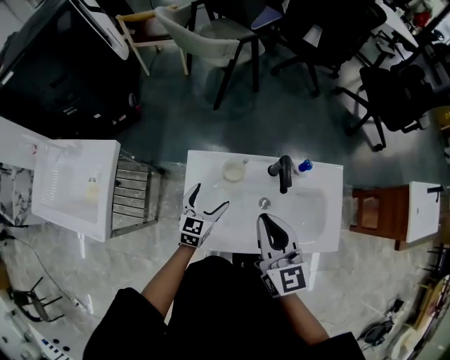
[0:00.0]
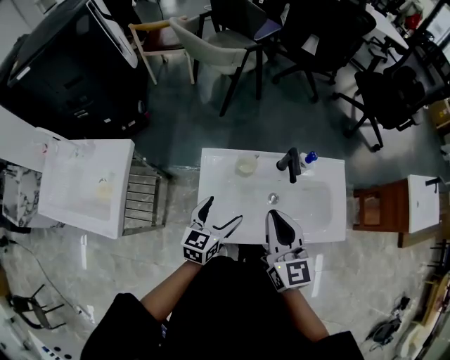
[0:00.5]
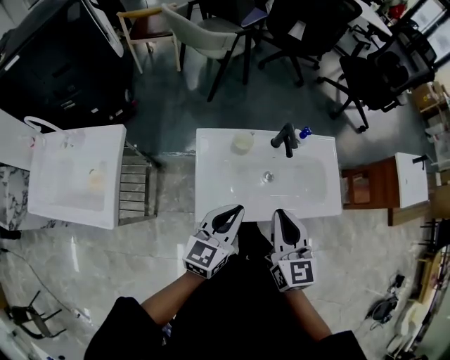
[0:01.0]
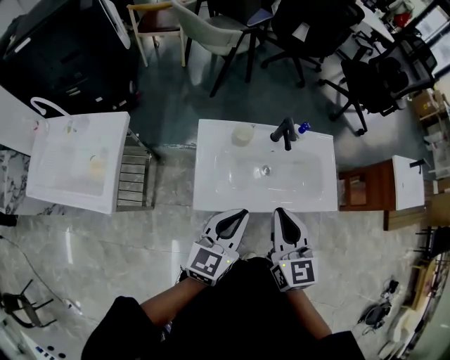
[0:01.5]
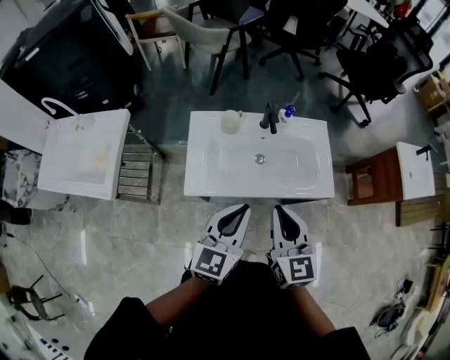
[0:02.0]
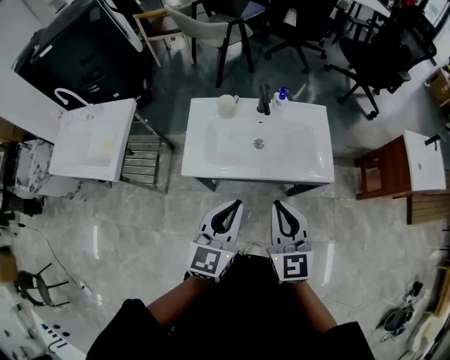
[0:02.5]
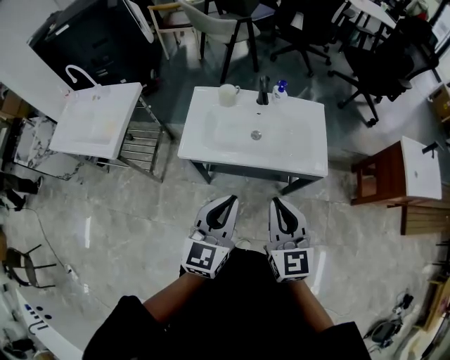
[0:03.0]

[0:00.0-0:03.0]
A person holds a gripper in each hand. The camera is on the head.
0:00.0 to 0:01.5: The right gripper goes about 20 cm backward; the left gripper heads backward and upward, covering some 30 cm, turns by some 20 degrees, and closes up.
0:01.5 to 0:03.0: The right gripper is displaced to the right and backward by roughly 25 cm; the left gripper is displaced backward and to the right by roughly 25 cm.

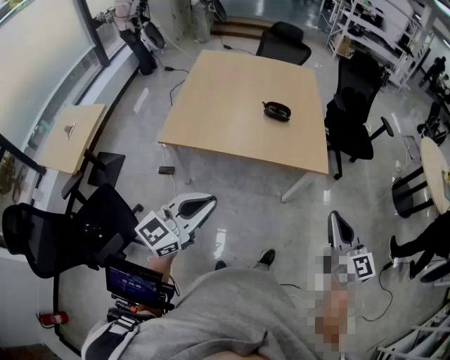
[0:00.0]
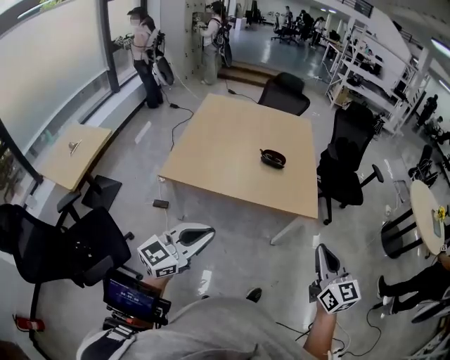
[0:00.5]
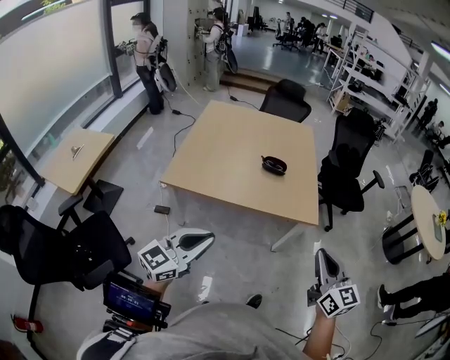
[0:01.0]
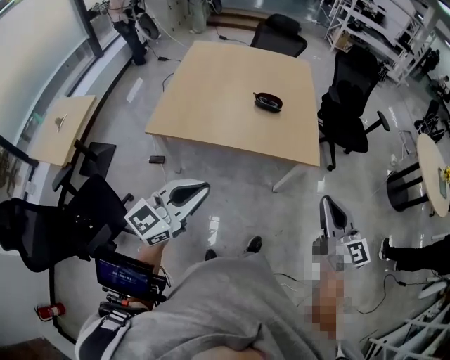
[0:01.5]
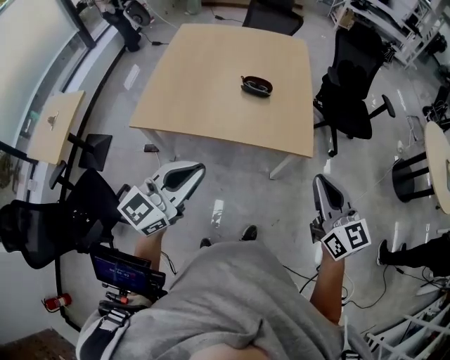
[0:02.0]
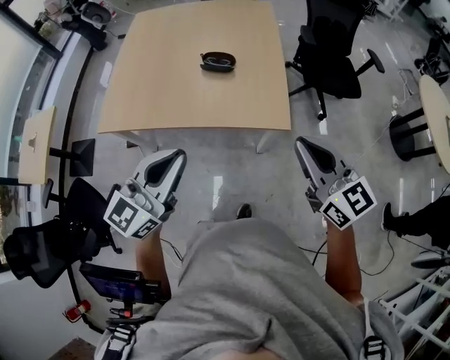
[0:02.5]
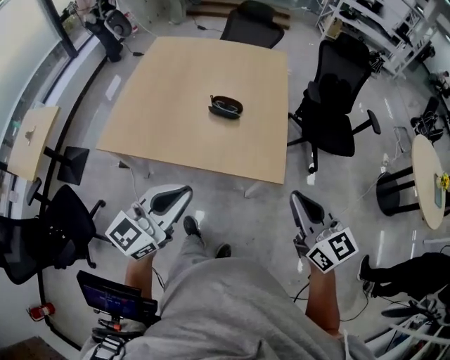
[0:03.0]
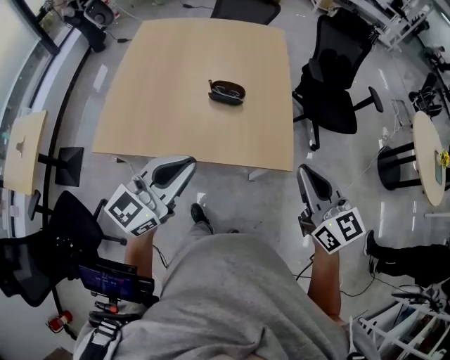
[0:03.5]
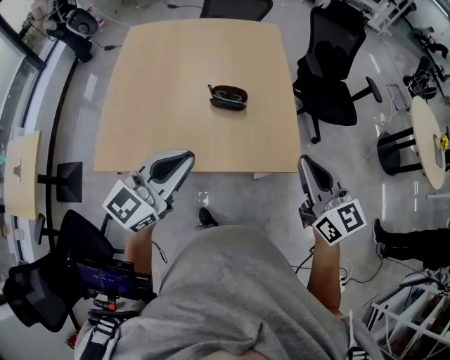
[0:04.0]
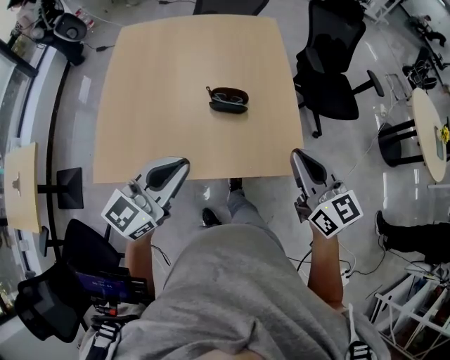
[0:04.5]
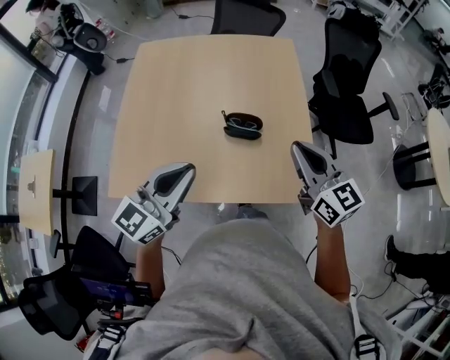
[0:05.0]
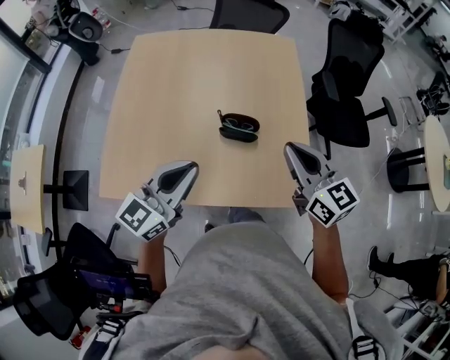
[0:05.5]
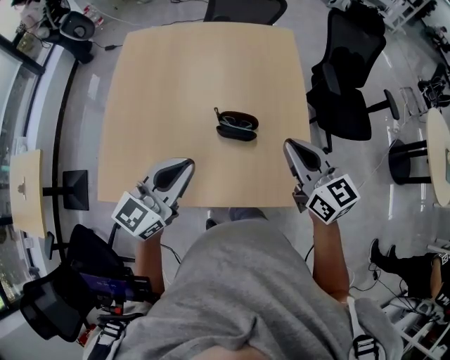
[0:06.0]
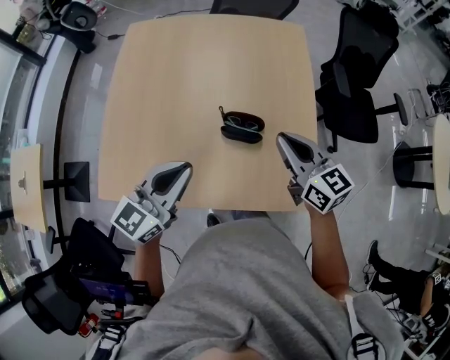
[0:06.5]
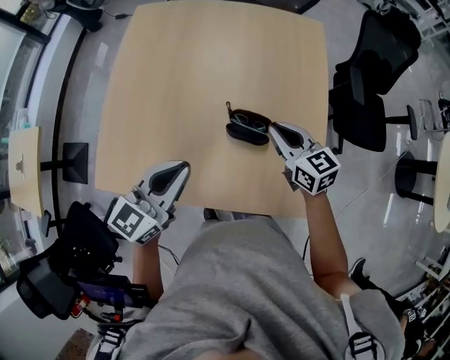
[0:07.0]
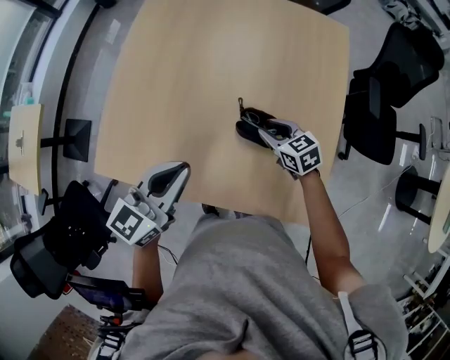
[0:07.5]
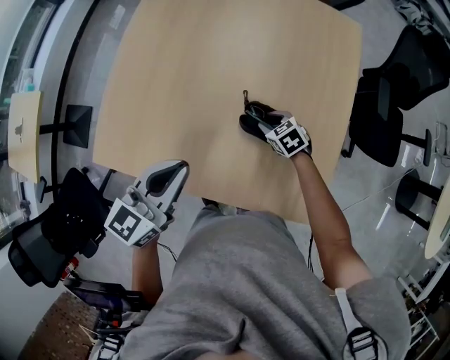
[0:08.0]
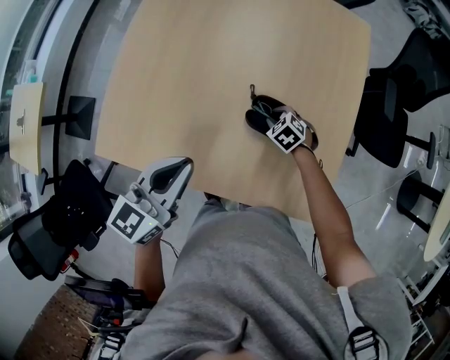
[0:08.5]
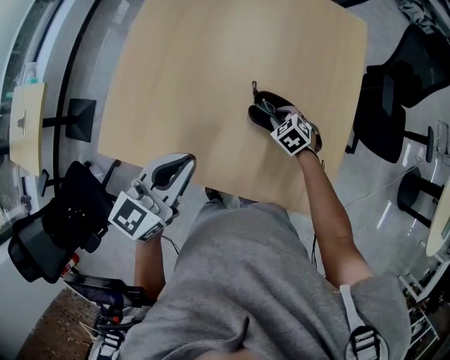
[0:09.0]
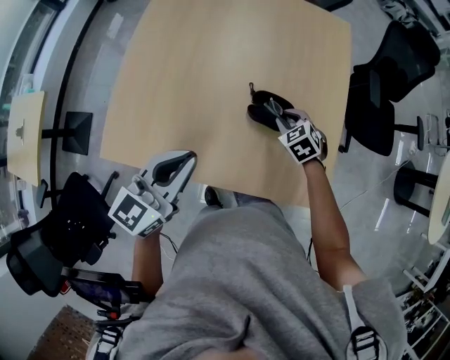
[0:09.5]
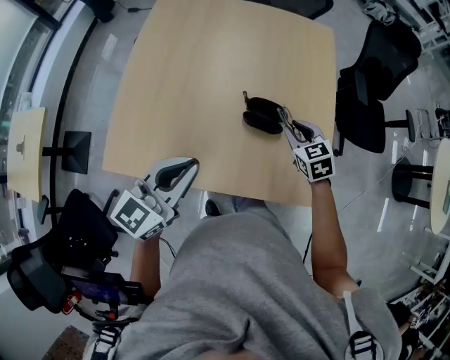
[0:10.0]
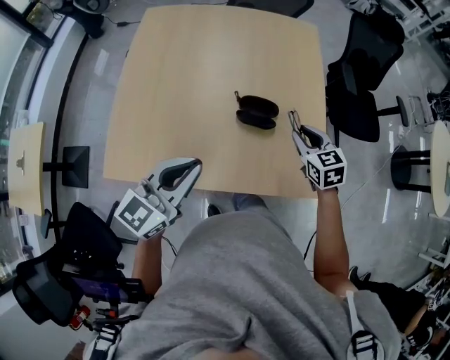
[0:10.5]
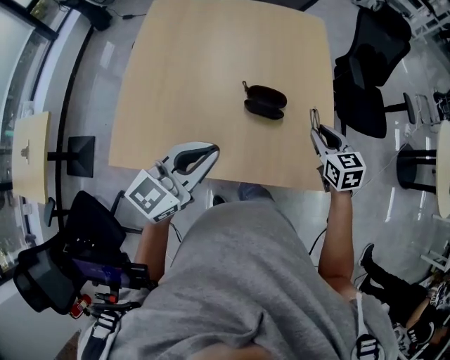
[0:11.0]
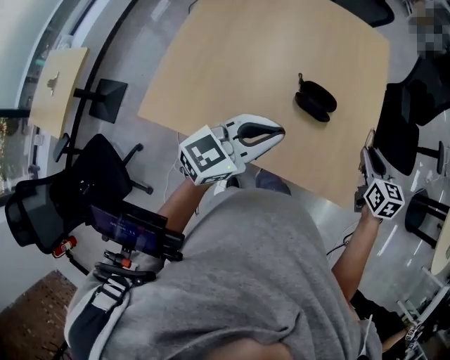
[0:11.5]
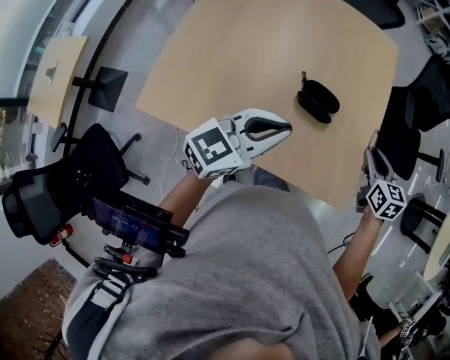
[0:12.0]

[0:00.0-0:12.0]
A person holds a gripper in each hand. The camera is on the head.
0:00.0 to 0:02.0: The left gripper goes roughly 15 cm to the right and forward, while the right gripper goes about 10 cm forward and to the right.
0:02.0 to 0:04.0: The two grippers go about 25 cm forward.
0:04.0 to 0:06.0: Both grippers move forward, some 20 cm.
0:06.0 to 0:08.0: The right gripper goes some 40 cm downward and forward, angles its fingers downward, by roughly 50 degrees, and opens. Meanwhile the left gripper shifts some 10 cm downward and forward, and rotates roughly 20 degrees.
0:08.0 to 0:10.0: The right gripper travels upward and backward by approximately 20 cm, and changes its angle by approximately 30 degrees, while the left gripper moves backward, about 10 cm.
0:10.0 to 0:12.0: The right gripper is displaced to the right by roughly 10 cm; the left gripper heads to the right, covering about 5 cm.

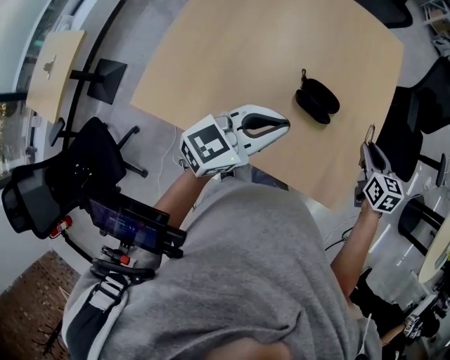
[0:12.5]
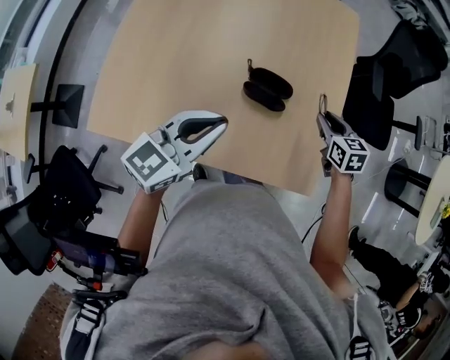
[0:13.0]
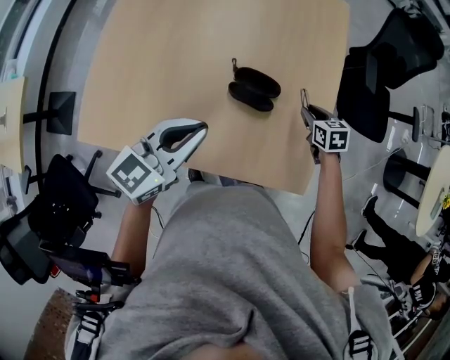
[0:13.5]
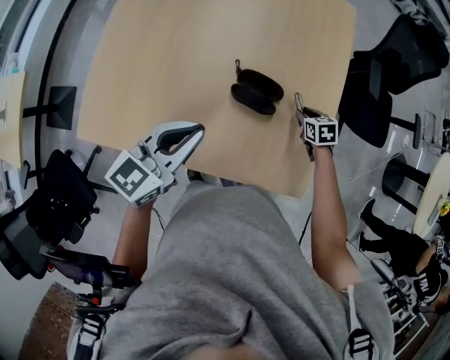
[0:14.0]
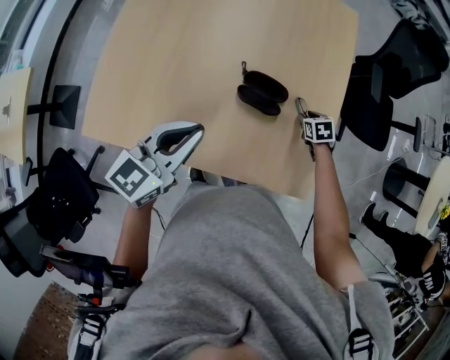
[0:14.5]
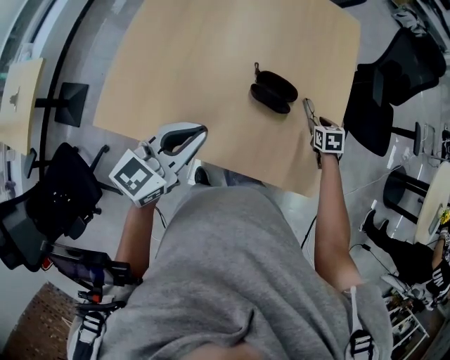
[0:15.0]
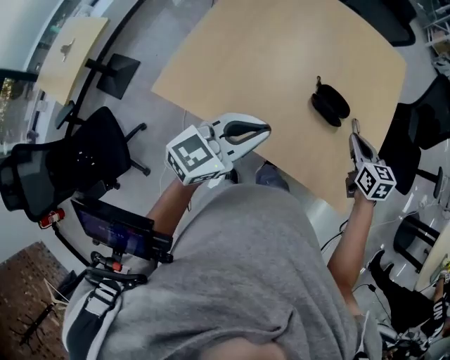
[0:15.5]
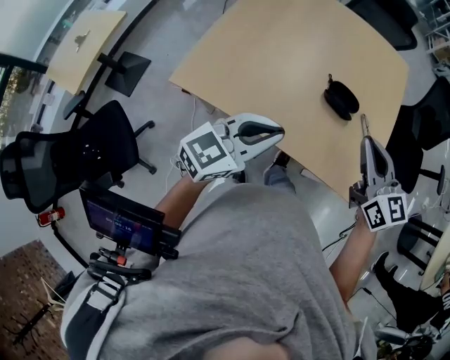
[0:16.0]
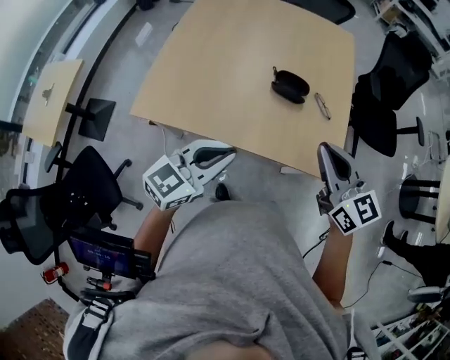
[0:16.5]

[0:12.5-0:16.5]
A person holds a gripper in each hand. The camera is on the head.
0:12.5 to 0:14.5: The right gripper moves downward, approximately 20 cm, and changes its angle by approximately 30 degrees.
0:14.5 to 0:16.5: The left gripper goes approximately 20 cm backward, while the right gripper heads upward, backward and to the left, covering approximately 50 cm, tilts its fingers approximately 60 degrees upward, and closes its fingers.

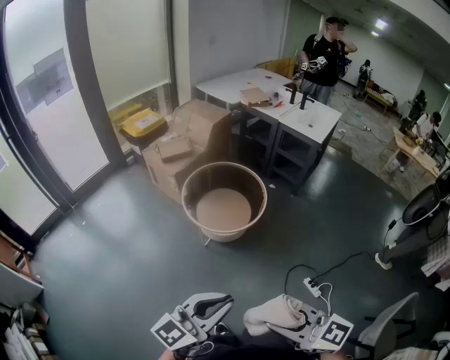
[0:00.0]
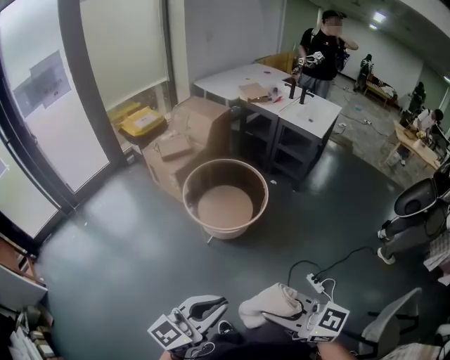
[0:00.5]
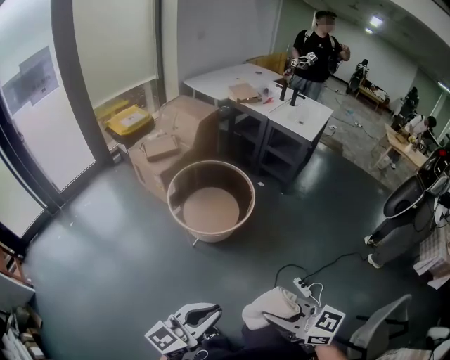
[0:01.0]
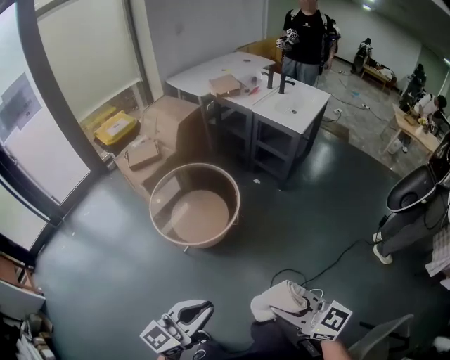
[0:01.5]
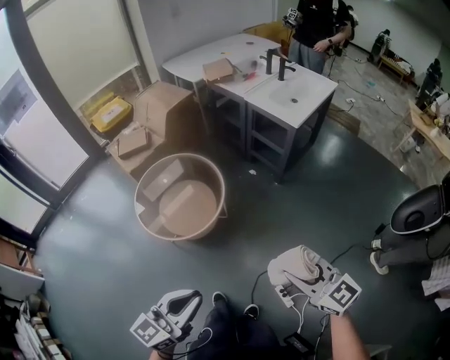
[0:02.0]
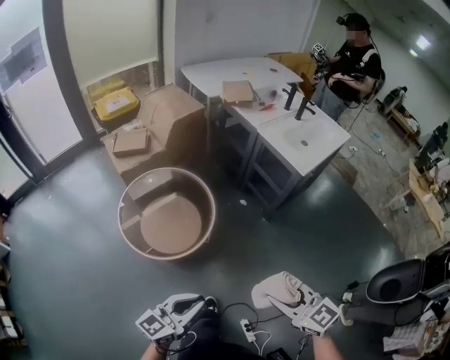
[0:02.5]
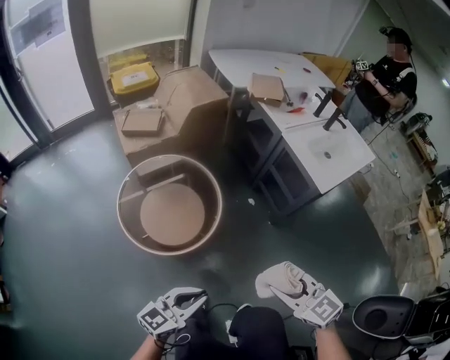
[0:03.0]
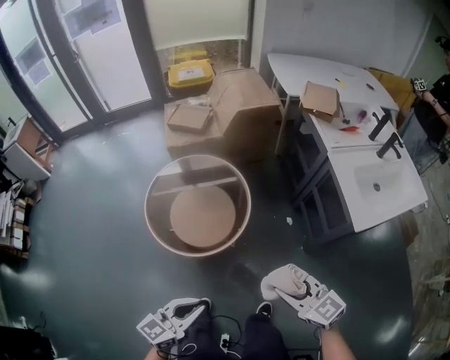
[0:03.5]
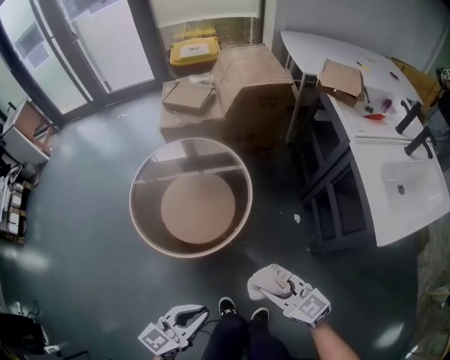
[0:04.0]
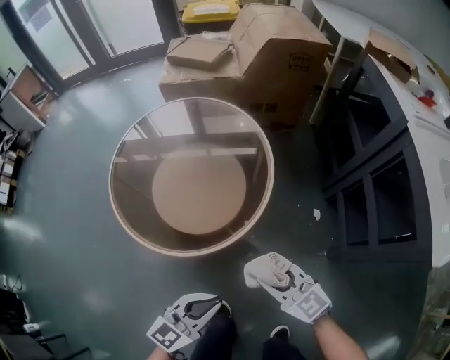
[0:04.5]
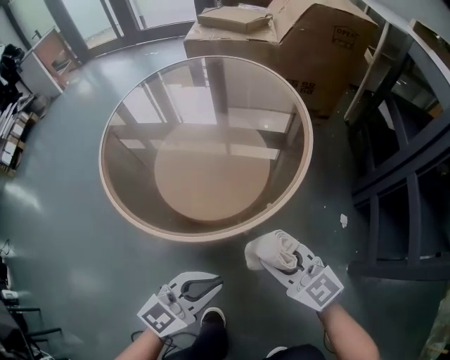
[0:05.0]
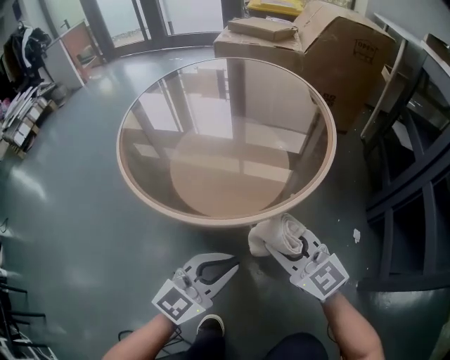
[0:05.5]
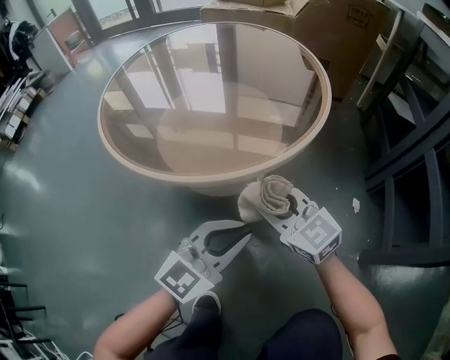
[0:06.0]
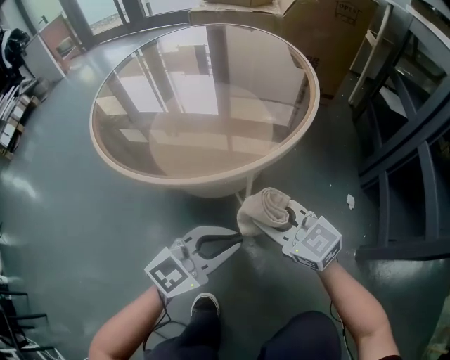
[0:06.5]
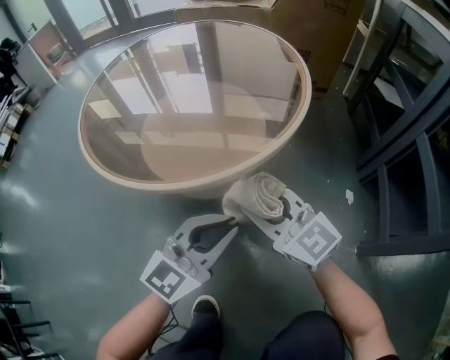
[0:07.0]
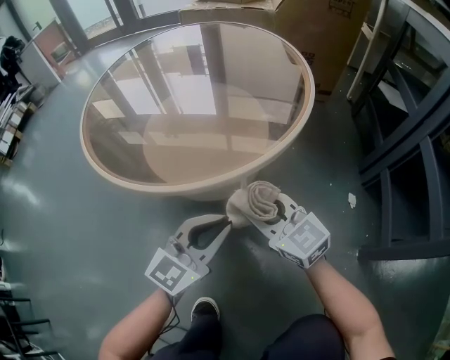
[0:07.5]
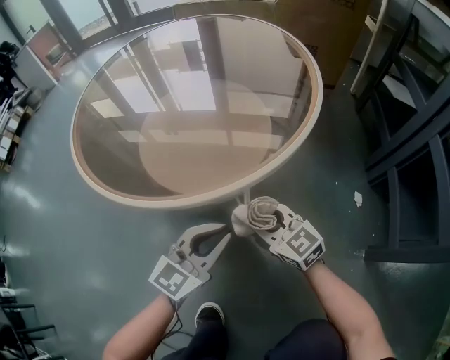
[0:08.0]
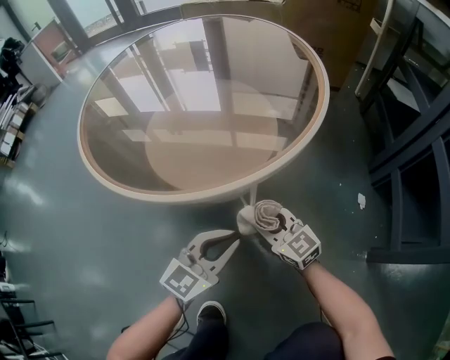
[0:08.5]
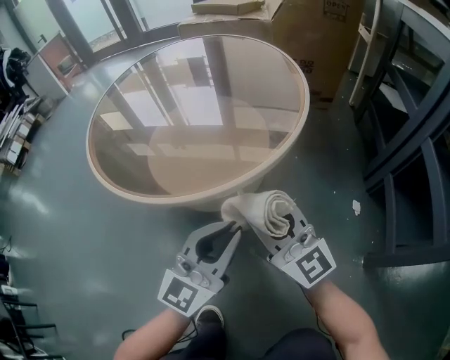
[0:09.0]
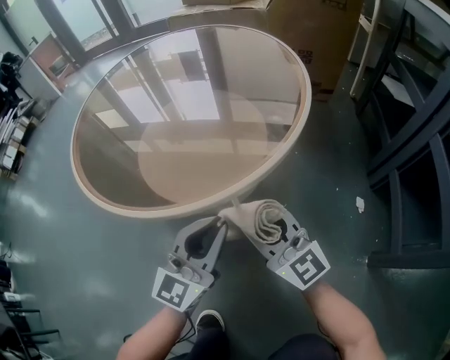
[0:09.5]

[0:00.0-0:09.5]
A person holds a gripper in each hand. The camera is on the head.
0:00.0 to 0:02.0: Both grippers are carried to the right and forward, about 50 cm.
0:02.0 to 0:04.0: The right gripper ends up some 50 cm from where it was, and rotates some 50 degrees, while the left gripper shifts by about 50 cm, and changes its angle by about 40 degrees.
0:04.0 to 0:05.5: The two grippers go some 40 cm downward. The left gripper rotates about 30 degrees, while the right gripper swivels roughly 30 degrees.
0:05.5 to 0:07.5: The left gripper moves roughly 5 cm. Meanwhile the right gripper swings up and down, some 5 cm each way, with 2 reversals.
0:07.5 to 0:09.5: The left gripper swings up and down, some 15 cm each way, with 2 reversals, while the right gripper goes up and down, roughly 20 cm each way, reversing 2 times, and swivels about 20 degrees.
